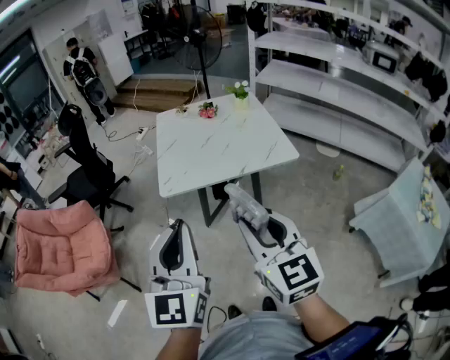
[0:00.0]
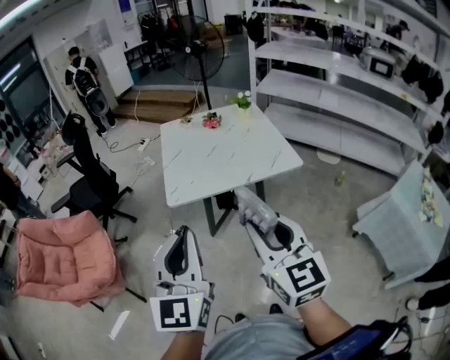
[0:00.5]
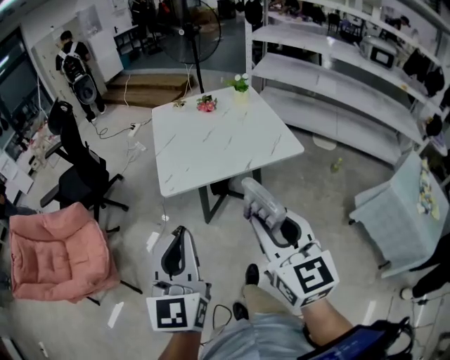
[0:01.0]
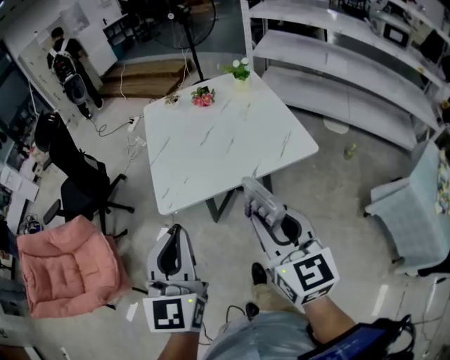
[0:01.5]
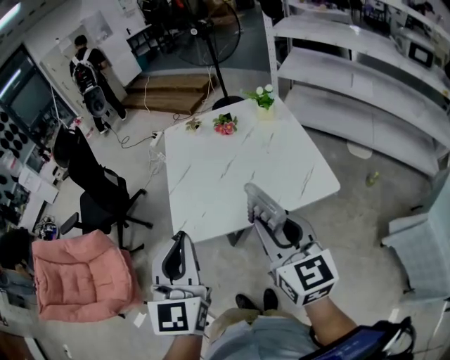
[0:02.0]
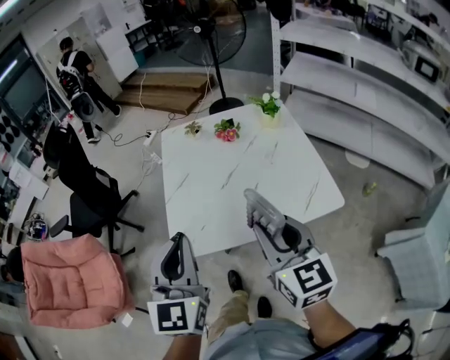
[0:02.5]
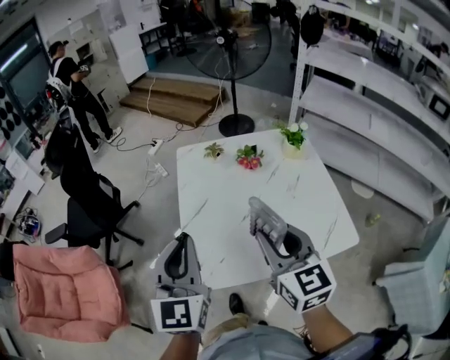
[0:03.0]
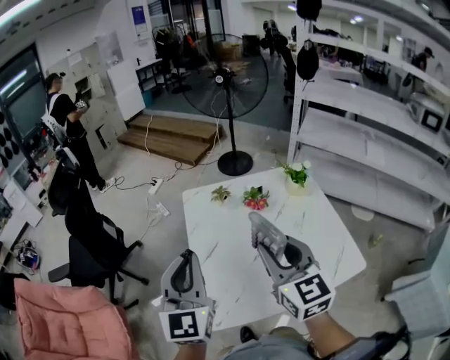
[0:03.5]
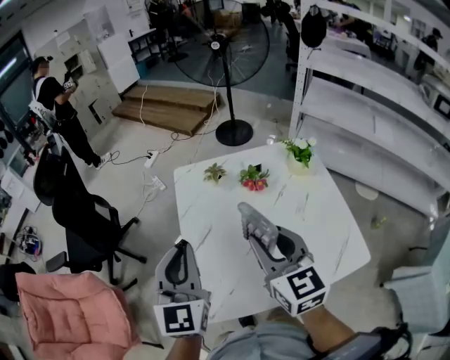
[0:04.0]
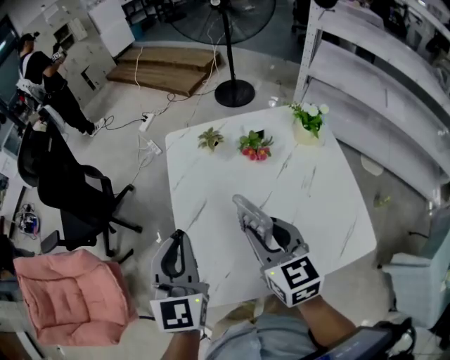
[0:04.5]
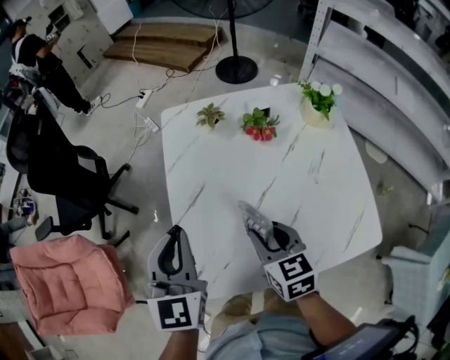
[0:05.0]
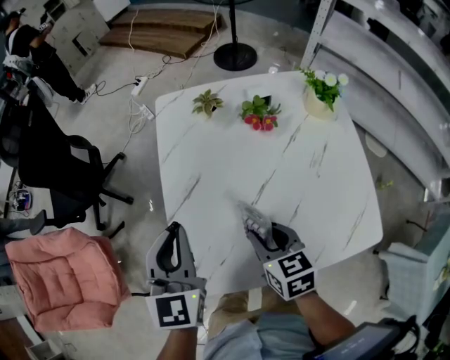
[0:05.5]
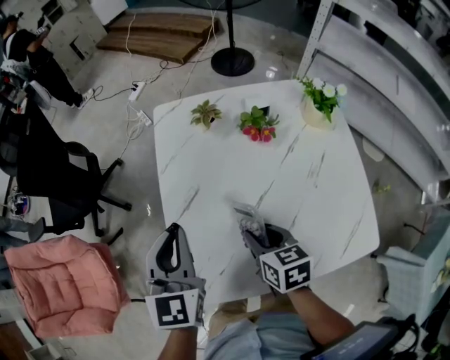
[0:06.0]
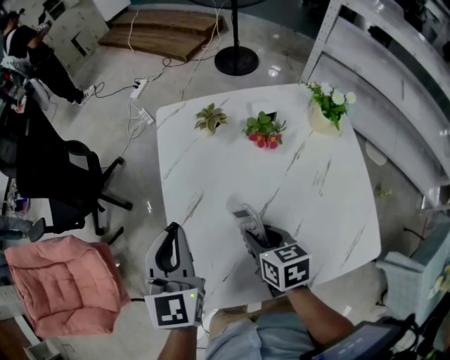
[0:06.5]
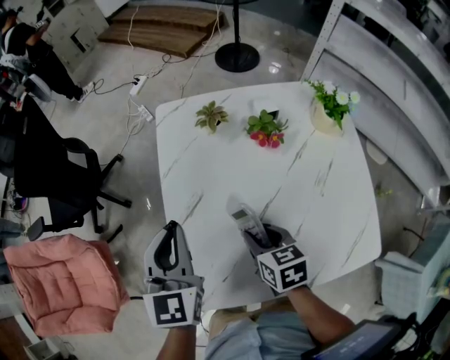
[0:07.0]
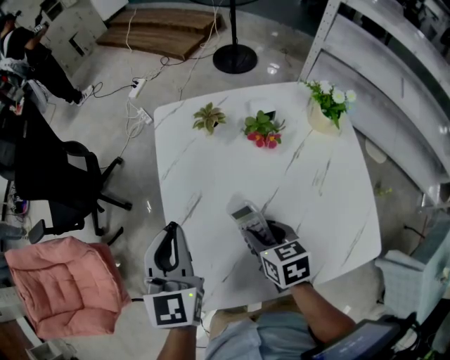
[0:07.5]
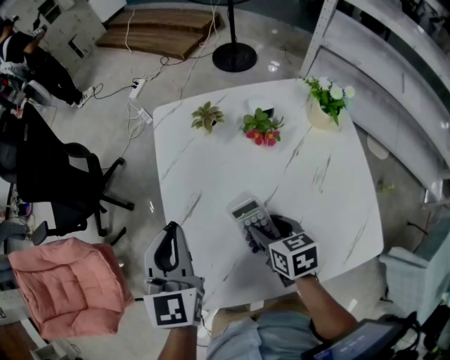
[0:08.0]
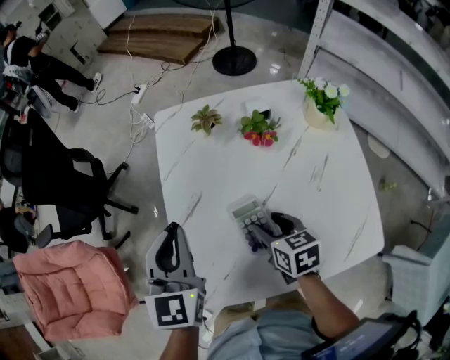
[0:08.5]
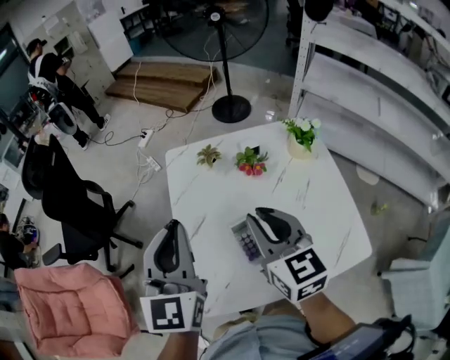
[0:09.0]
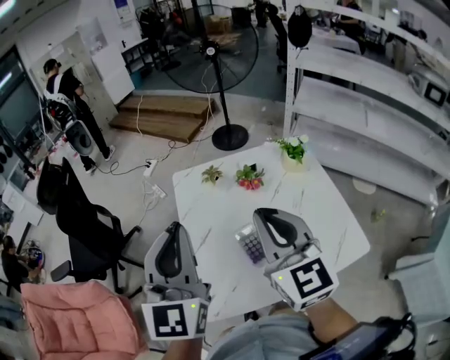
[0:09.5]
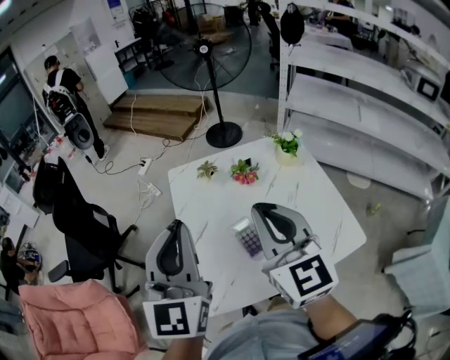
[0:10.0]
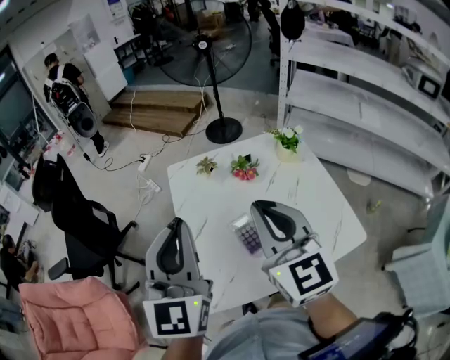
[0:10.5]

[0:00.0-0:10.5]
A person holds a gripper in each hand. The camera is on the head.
0:00.0 to 0:02.0: Both grippers travel together forward, roughly 25 cm.
0:02.0 to 0:04.0: The two grippers go about 30 cm forward.
0:04.0 to 0:06.5: The right gripper moves downward, approximately 25 cm, and tilts its fingers about 30 degrees downward. The left gripper travels downward and forward by roughly 15 cm.
0:06.5 to 0:08.5: The right gripper opens up.
0:08.5 to 0:10.5: The right gripper shifts some 35 cm upward, tilts its fingers approximately 50 degrees upward, and closes its fingers; the left gripper travels upward and backward by approximately 20 cm, and turns by about 30 degrees.

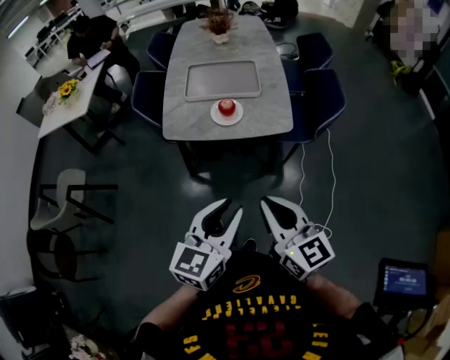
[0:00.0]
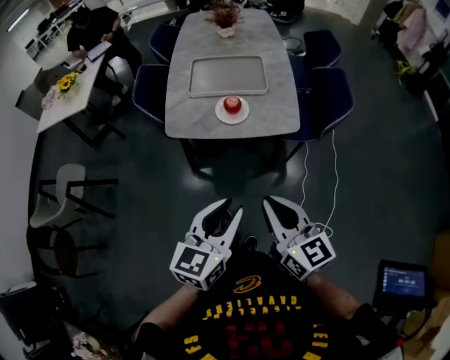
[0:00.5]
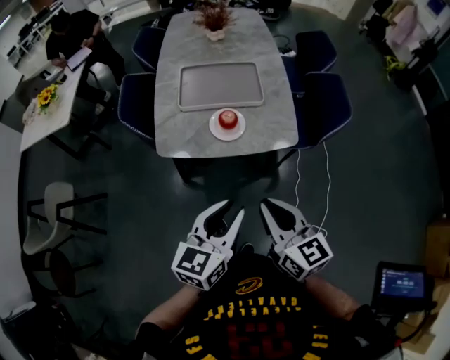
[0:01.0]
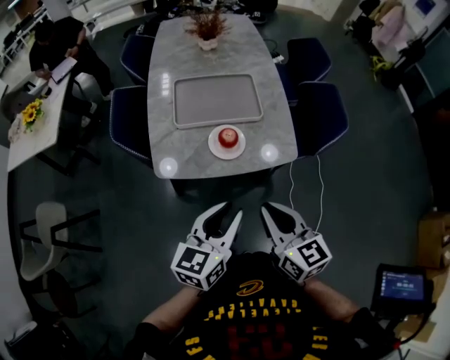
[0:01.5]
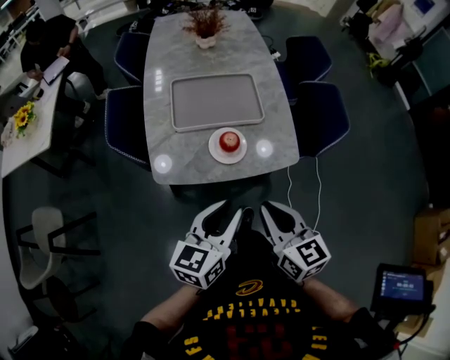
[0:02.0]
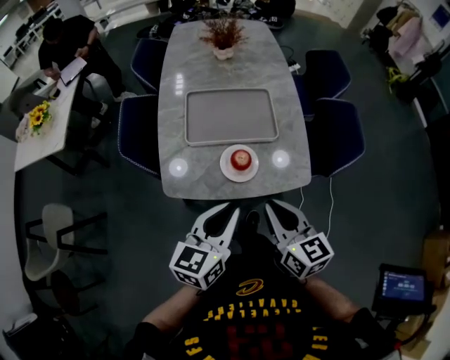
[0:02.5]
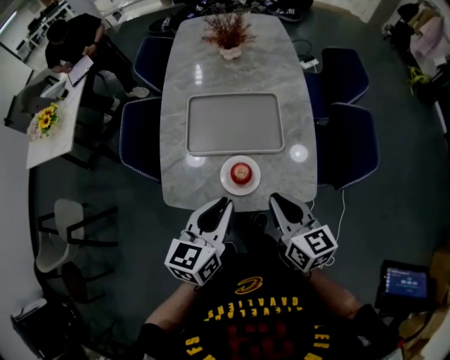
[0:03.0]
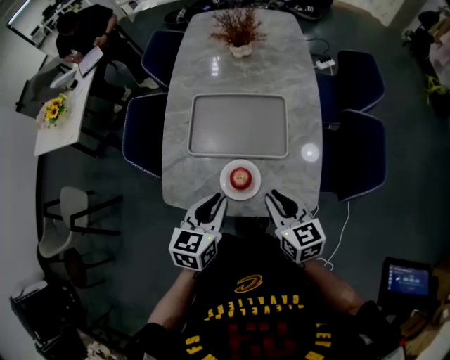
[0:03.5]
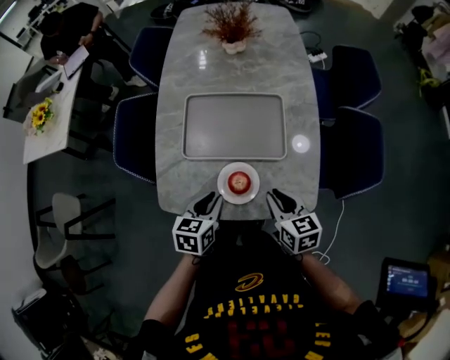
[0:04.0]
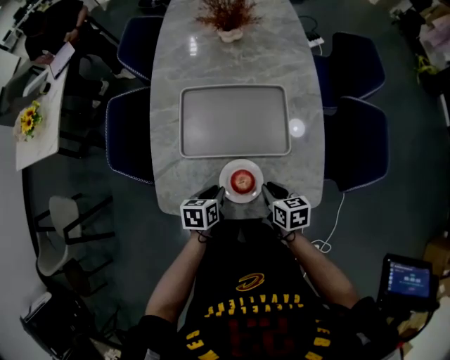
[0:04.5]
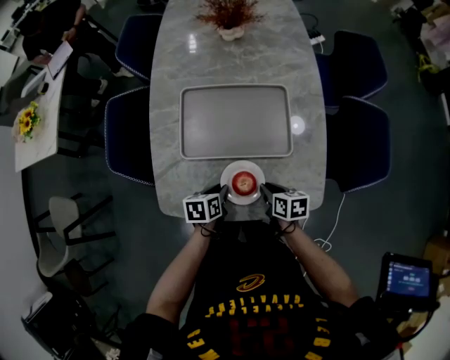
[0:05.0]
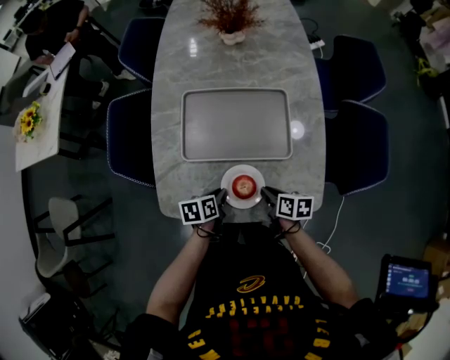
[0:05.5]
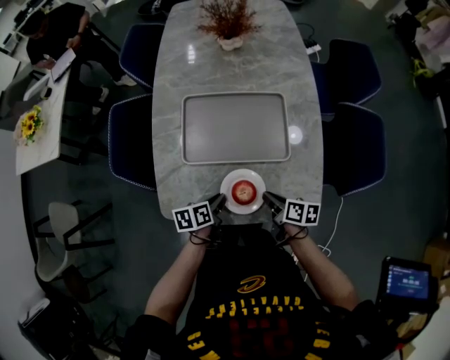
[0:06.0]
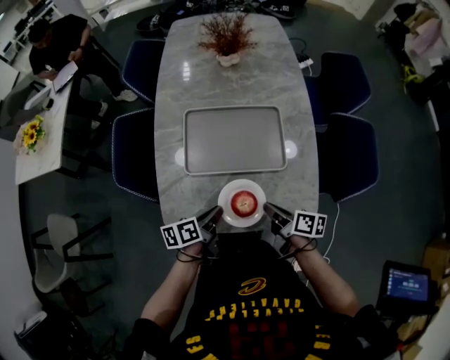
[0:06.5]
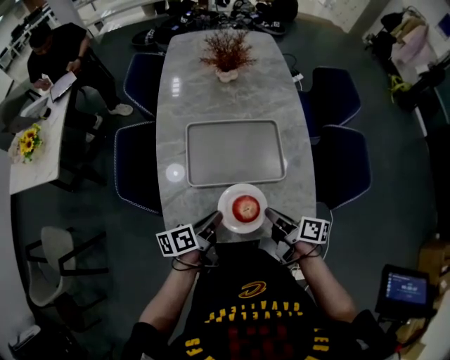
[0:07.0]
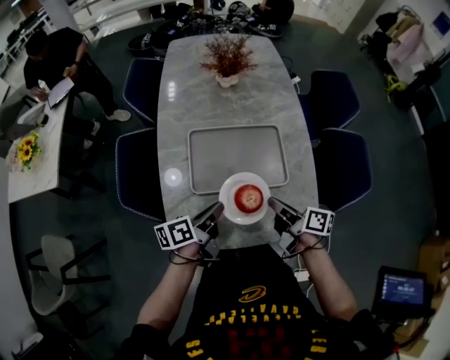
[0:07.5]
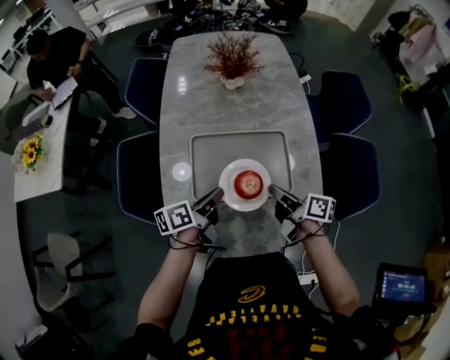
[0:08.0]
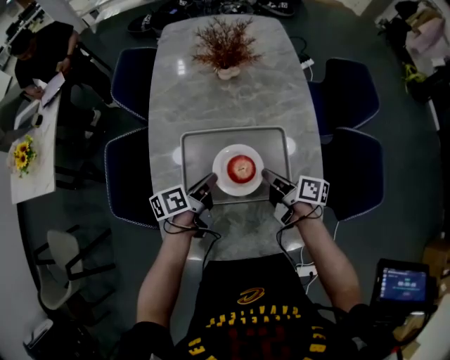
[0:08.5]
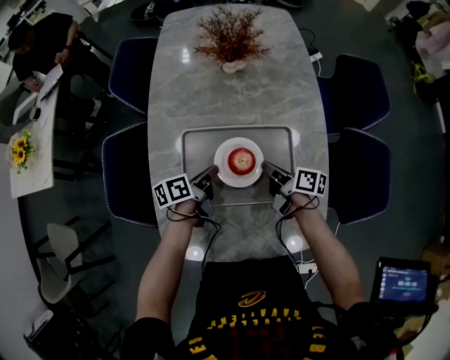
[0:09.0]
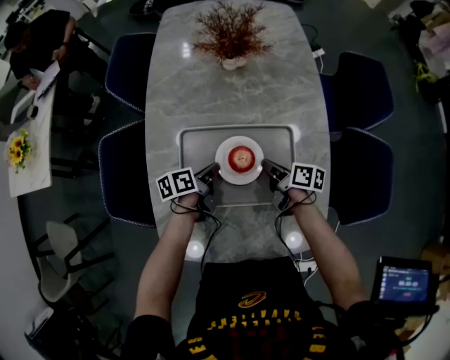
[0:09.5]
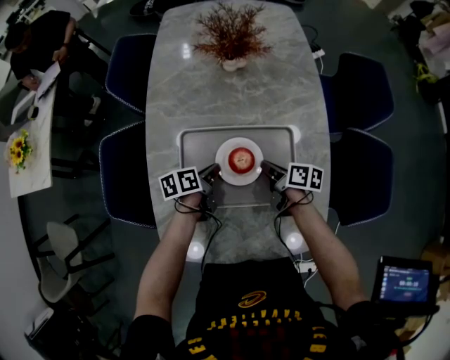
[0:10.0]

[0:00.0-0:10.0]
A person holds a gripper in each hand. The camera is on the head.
0:00.0 to 0:02.0: Both grippers travel together forward and to the left, roughly 20 cm.
0:02.0 to 0:04.0: The two grippers go some 25 cm forward and downward. The left gripper turns by about 30 degrees.
0:04.0 to 0:06.0: The two grippers go roughly 10 cm downward. The right gripper turns by roughly 40 degrees; the left gripper turns by approximately 30 degrees.
0:06.0 to 0:08.0: Both grippers move upward and forward, approximately 20 cm. The right gripper turns by about 20 degrees, while the left gripper changes its angle by about 30 degrees.
0:08.0 to 0:10.0: Both grippers travel together downward and forward, some 20 cm. The left gripper changes its angle by roughly 20 degrees, while the right gripper swivels approximately 20 degrees.

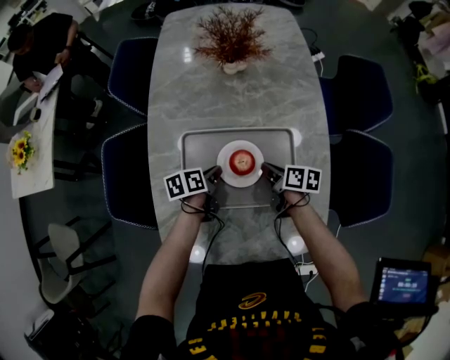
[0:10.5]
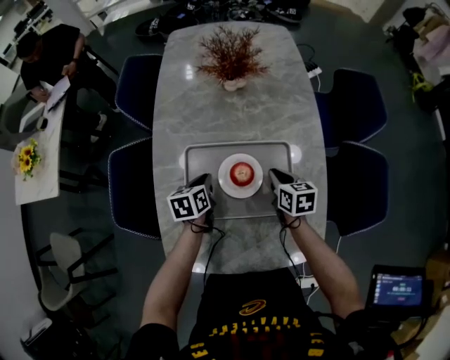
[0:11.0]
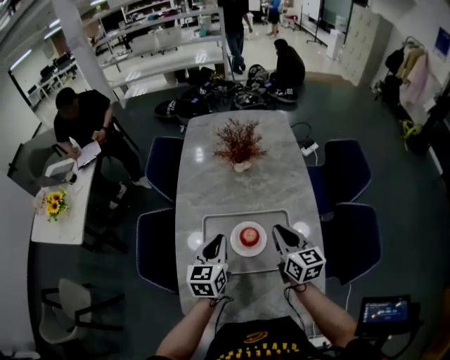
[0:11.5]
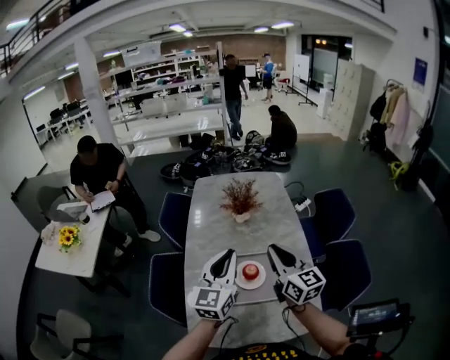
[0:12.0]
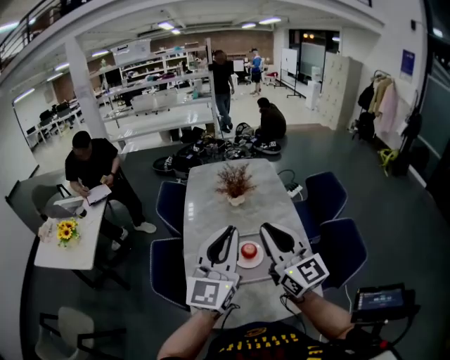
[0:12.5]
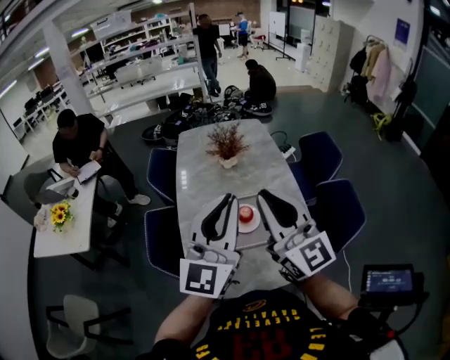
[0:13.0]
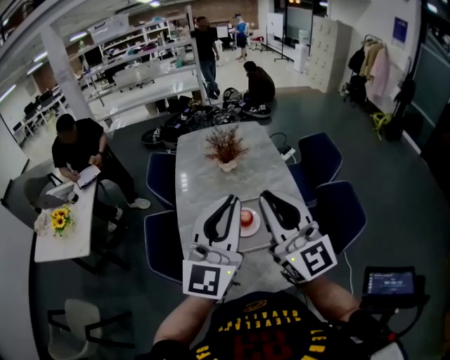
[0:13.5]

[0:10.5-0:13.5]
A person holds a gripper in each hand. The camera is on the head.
0:10.5 to 0:12.0: The two grippers go about 40 cm upward. The left gripper points its fingers approximately 40 degrees further upward, while the right gripper points its fingers approximately 40 degrees further upward.
0:12.0 to 0:13.5: The grippers both shift upward and backward by approximately 20 cm. The left gripper rotates about 20 degrees, while the right gripper changes its angle by some 30 degrees.

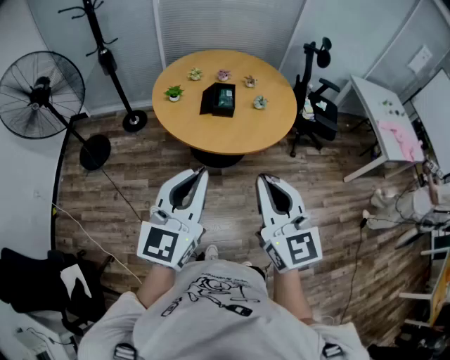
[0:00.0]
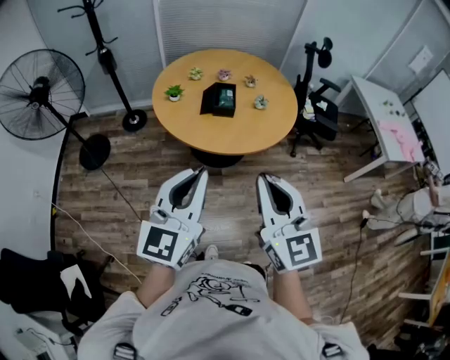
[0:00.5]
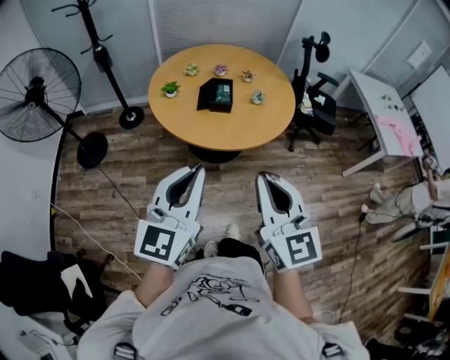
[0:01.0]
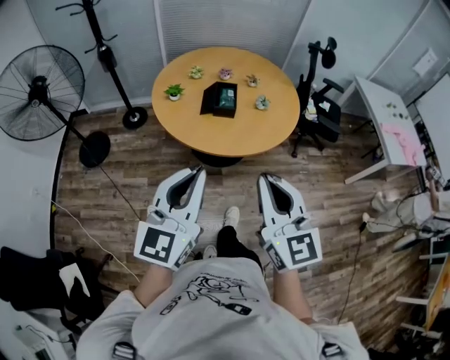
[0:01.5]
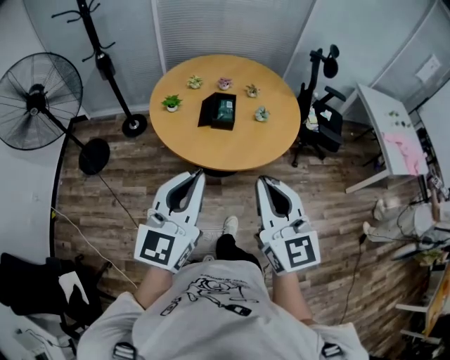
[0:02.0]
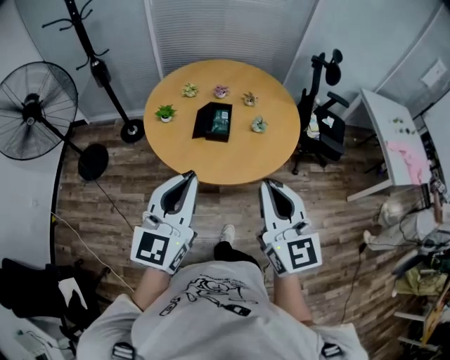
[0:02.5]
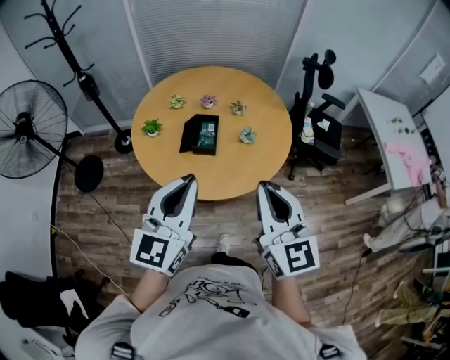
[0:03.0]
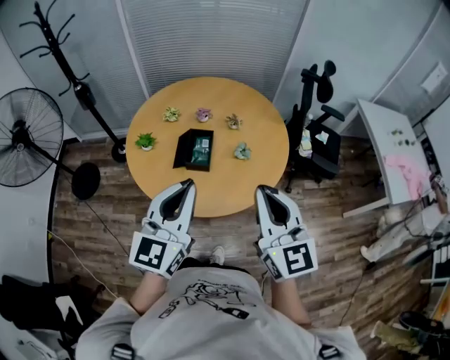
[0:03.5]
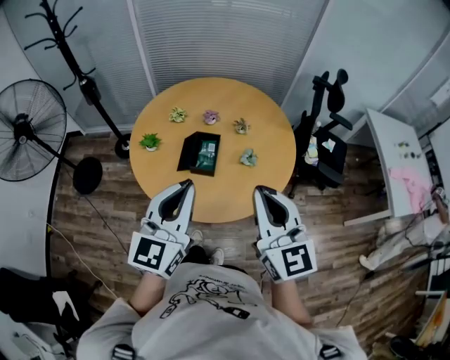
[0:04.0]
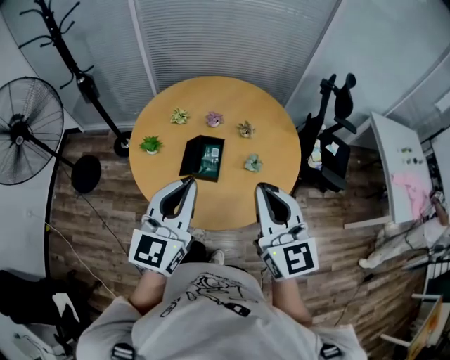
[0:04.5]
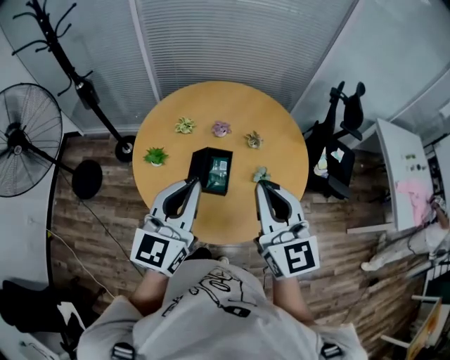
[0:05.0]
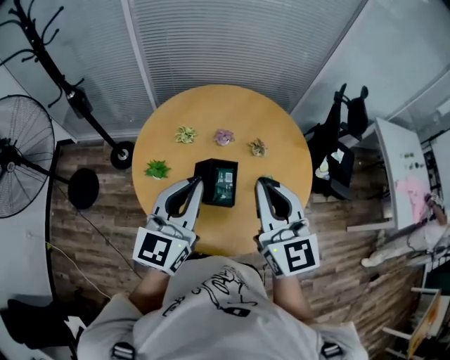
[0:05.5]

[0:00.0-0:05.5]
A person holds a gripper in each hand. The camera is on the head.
0:00.0 to 0:02.0: Both grippers travel together forward, approximately 10 cm.
0:02.0 to 0:03.5: The two grippers go roughly 25 cm forward and to the right.
0:03.5 to 0:05.5: The grippers both shift forward and to the left by approximately 25 cm.
